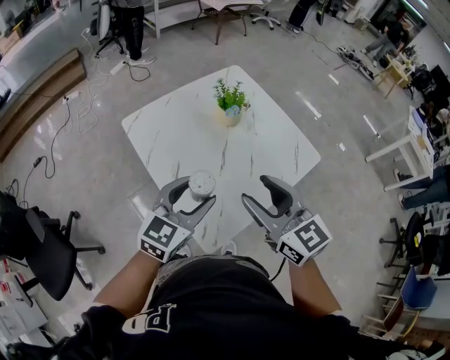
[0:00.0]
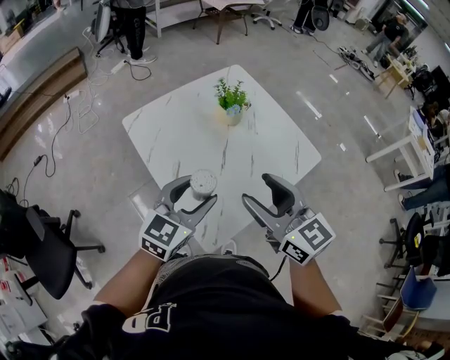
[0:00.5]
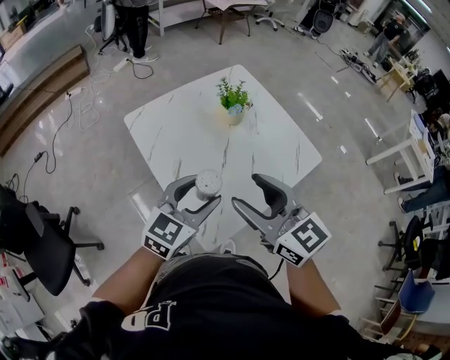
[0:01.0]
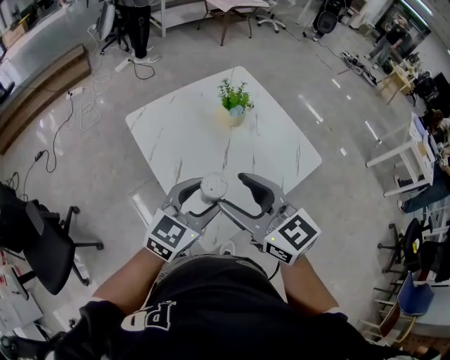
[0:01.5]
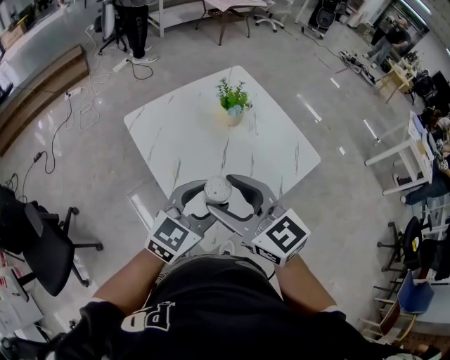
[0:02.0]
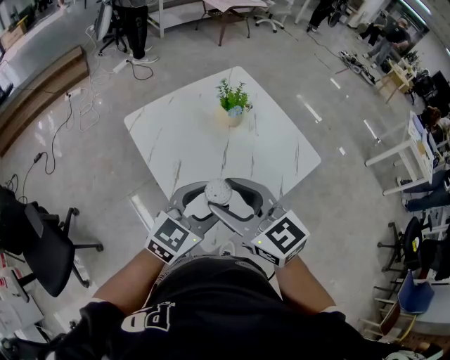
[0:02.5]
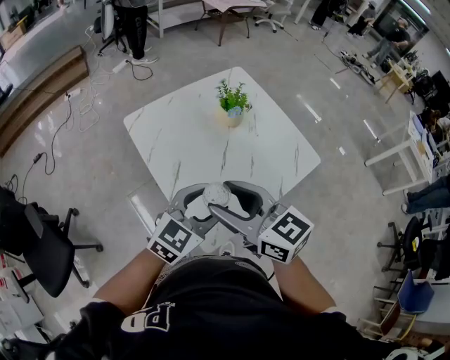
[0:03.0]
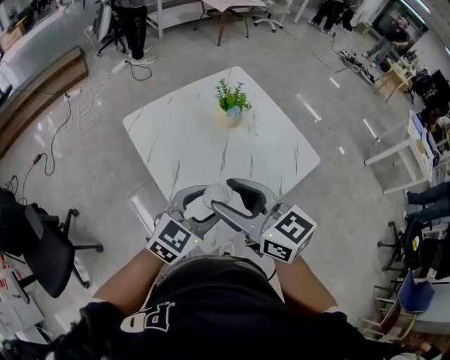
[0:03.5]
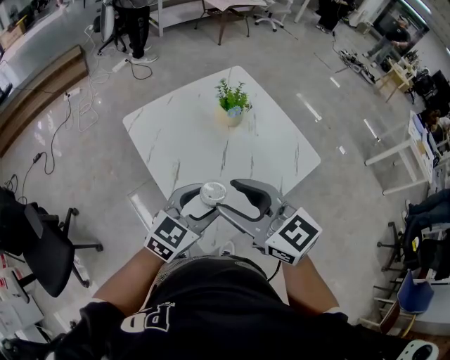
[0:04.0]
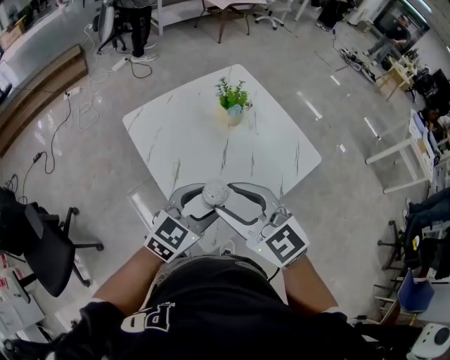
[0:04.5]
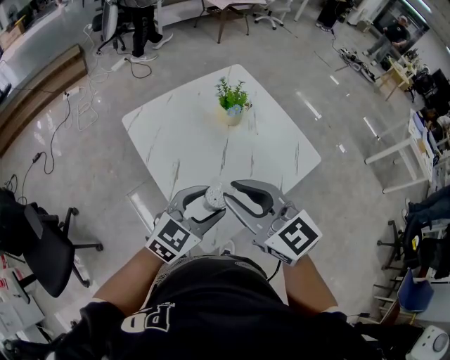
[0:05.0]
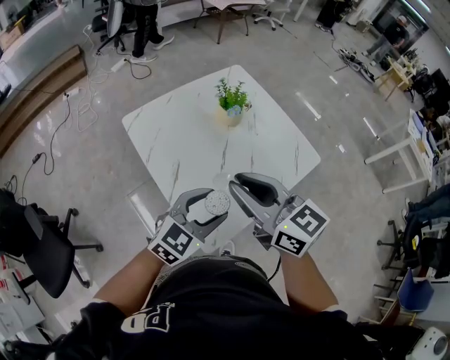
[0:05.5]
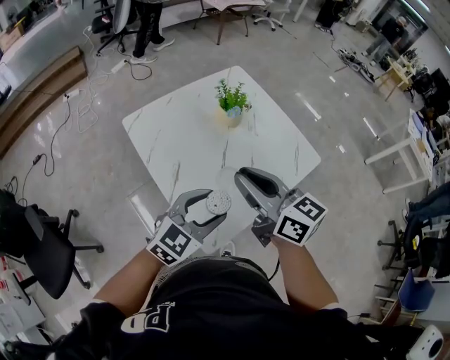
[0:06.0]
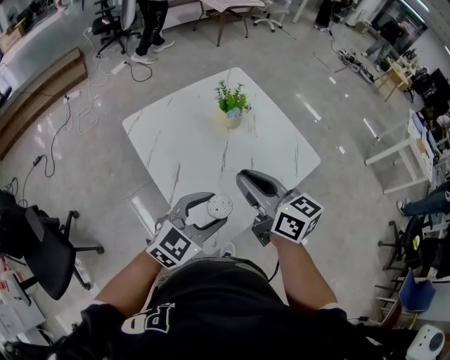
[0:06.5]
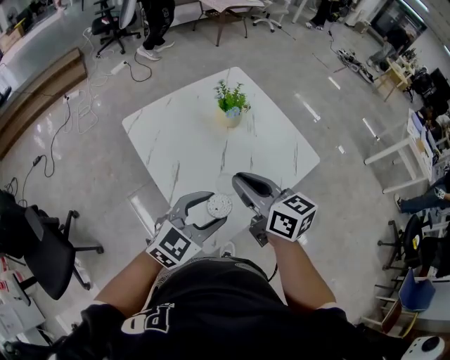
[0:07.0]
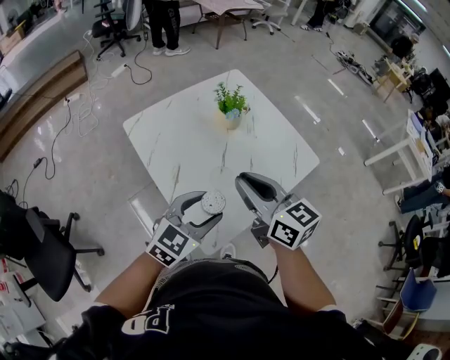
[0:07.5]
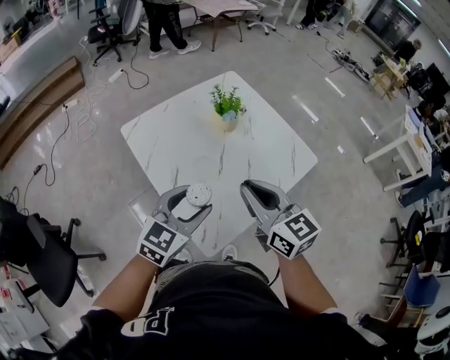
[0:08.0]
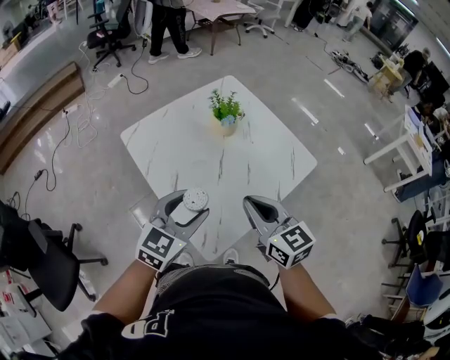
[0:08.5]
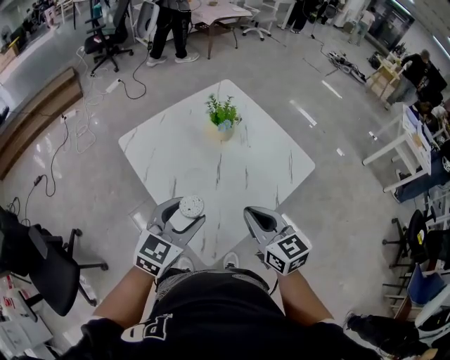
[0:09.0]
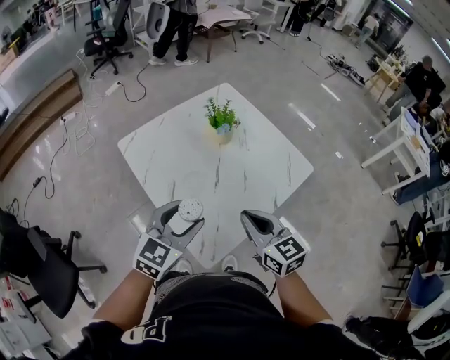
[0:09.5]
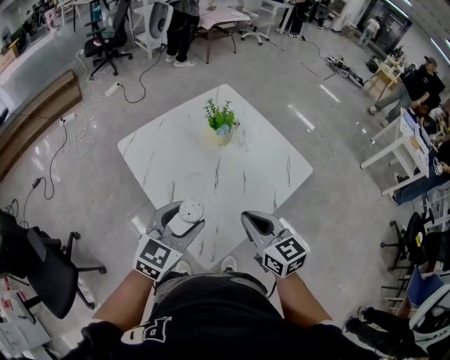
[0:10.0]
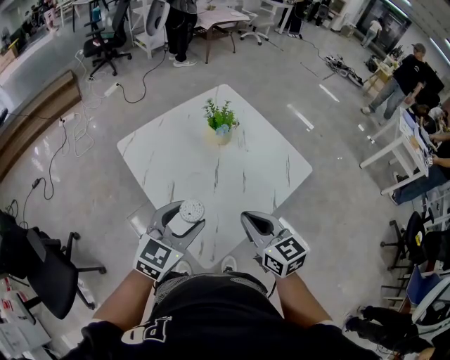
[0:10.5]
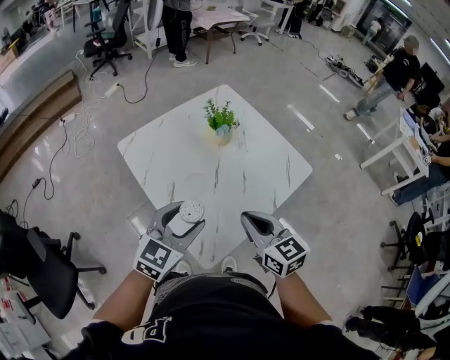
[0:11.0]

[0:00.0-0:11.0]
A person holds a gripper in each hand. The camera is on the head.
0:00.0 to 0:02.0: The right gripper heads to the left, covering roughly 10 cm.
0:02.0 to 0:03.5: The grippers stay close to where they were, moving slightly.
0:03.5 to 0:05.5: The right gripper closes its fingers.
0:07.5 to 0:09.0: The right gripper shifts some 5 cm downward.
0:09.0 to 0:11.0: Neither gripper changes place.

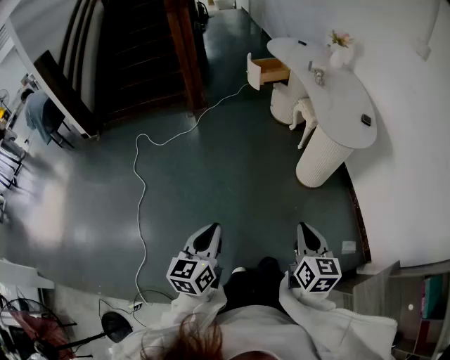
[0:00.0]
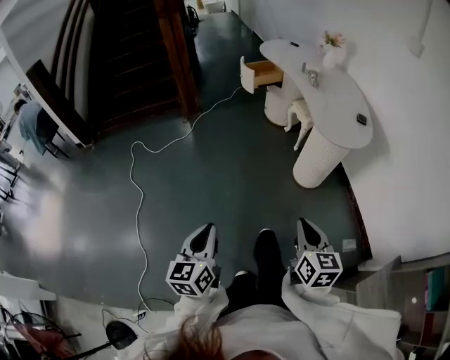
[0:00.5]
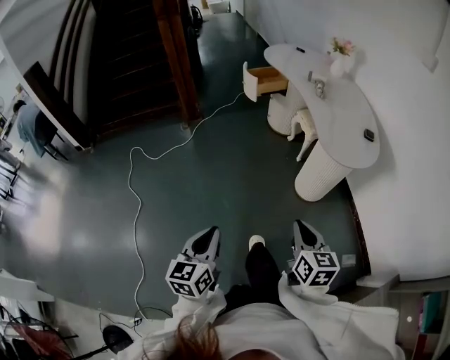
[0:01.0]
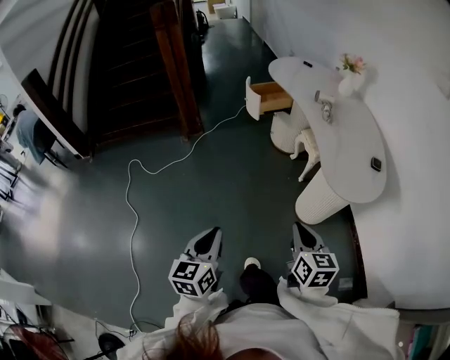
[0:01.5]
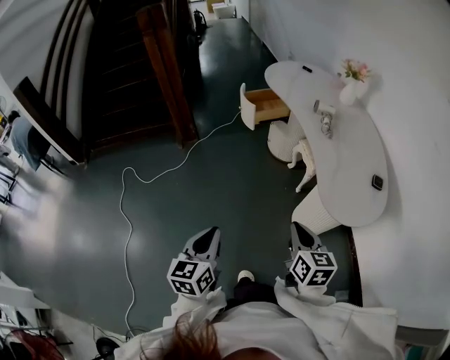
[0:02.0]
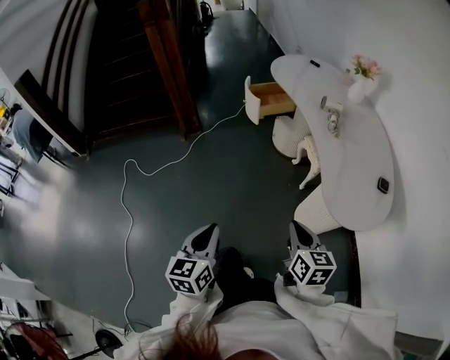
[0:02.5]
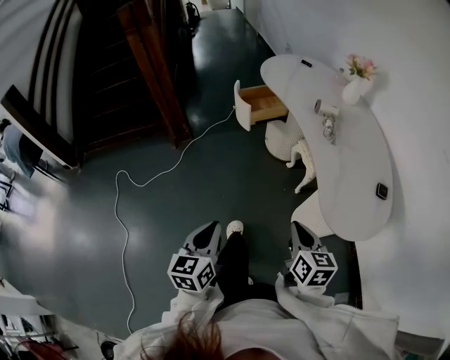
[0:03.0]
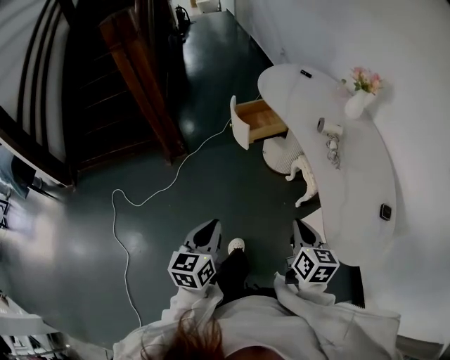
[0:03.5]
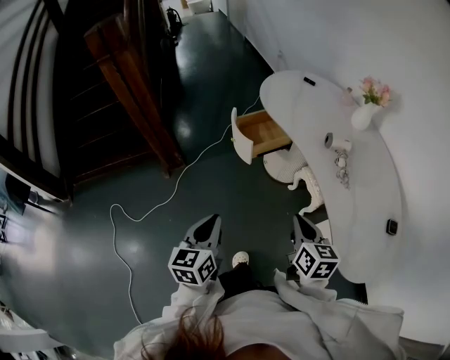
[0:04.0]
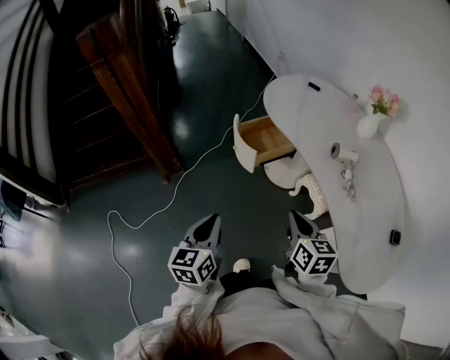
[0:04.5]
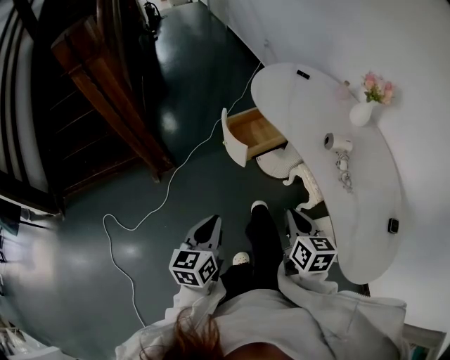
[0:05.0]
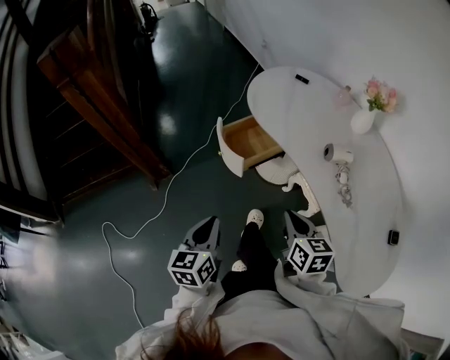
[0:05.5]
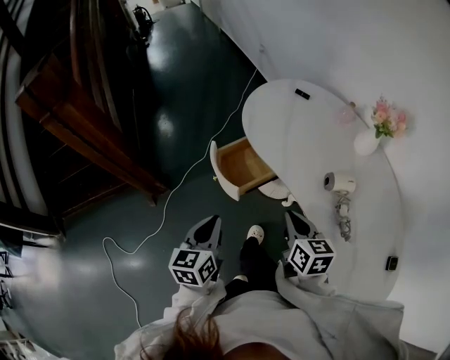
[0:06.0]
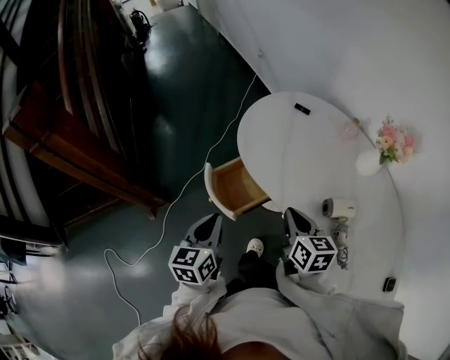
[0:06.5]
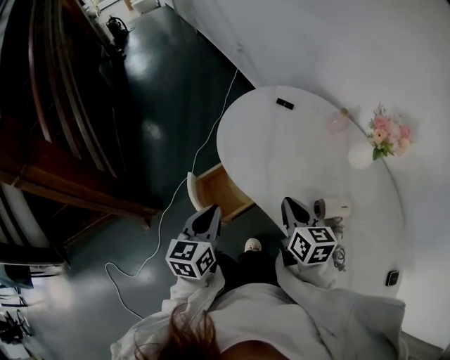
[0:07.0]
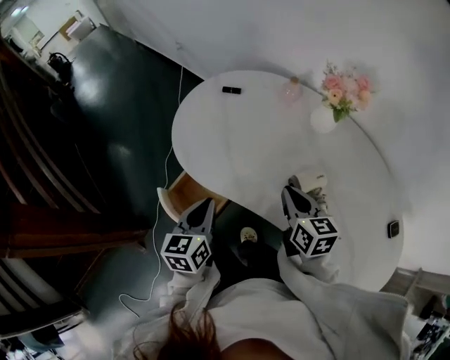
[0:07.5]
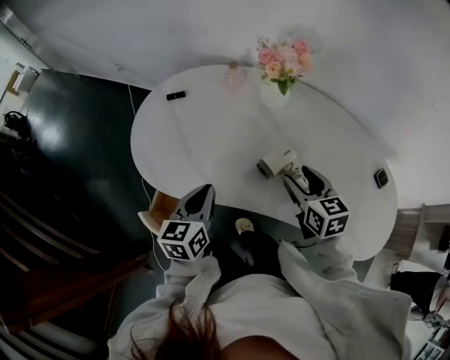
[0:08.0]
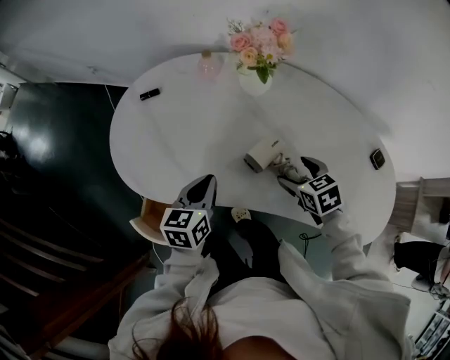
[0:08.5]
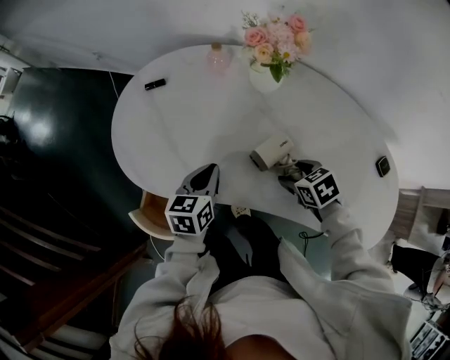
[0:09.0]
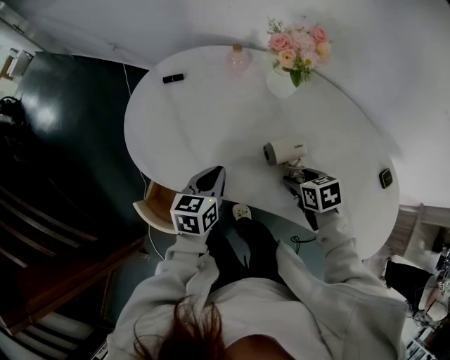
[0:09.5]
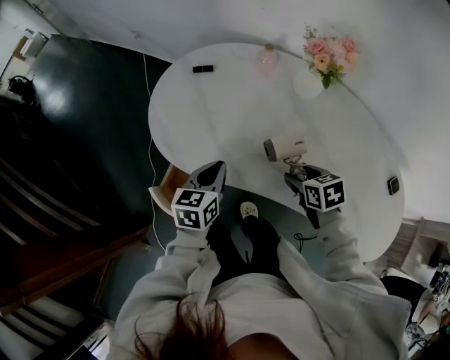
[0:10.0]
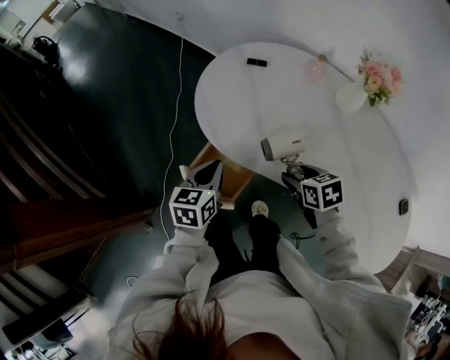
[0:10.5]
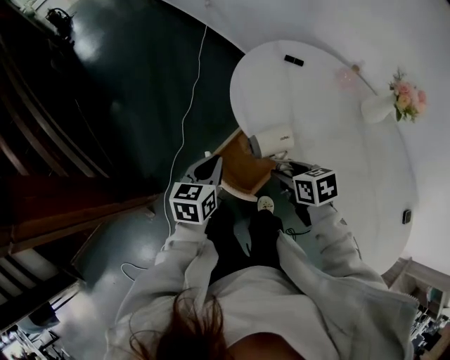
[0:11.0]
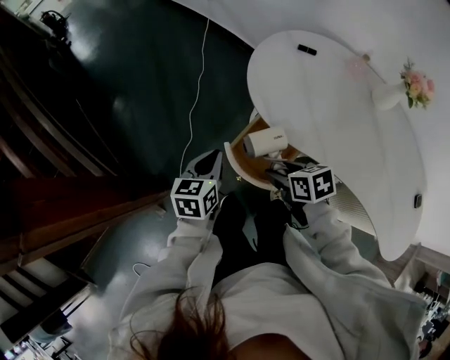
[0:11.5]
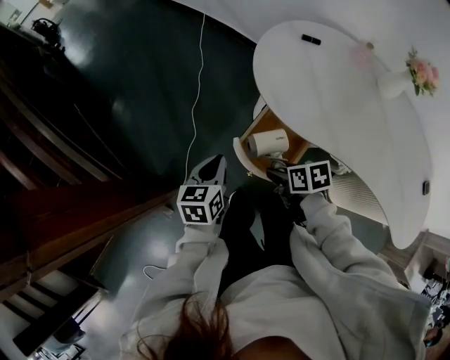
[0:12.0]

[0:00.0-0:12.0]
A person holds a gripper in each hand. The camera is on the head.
0:00.0 to 0:02.0: The two grippers go roughly 35 cm forward.
0:02.0 to 0:04.0: The two grippers go some 35 cm forward.
0:04.0 to 0:06.0: The two grippers go some 25 cm forward.
0:06.0 to 0:08.0: The right gripper shifts by approximately 25 cm, swivels approximately 30 degrees, and opens up, while the left gripper moves about 30 cm, and changes its angle by about 40 degrees.
0:08.0 to 0:10.0: The right gripper heads downward and to the left, covering some 10 cm, and rotates about 30 degrees; the left gripper travels downward by approximately 5 cm.
0:10.0 to 0:12.0: Both grippers move to the left, approximately 35 cm.

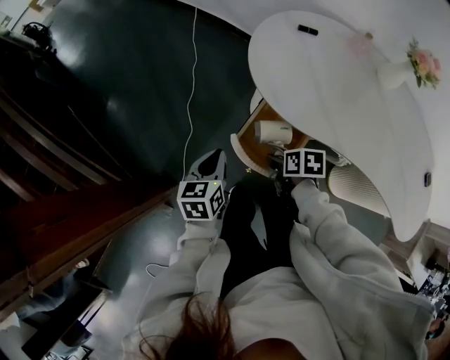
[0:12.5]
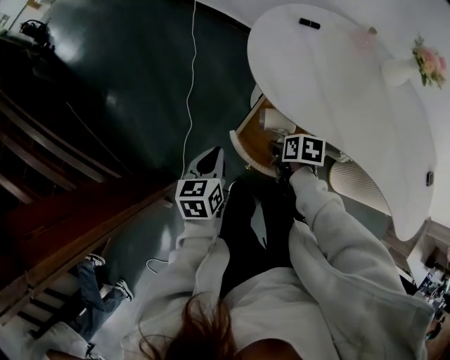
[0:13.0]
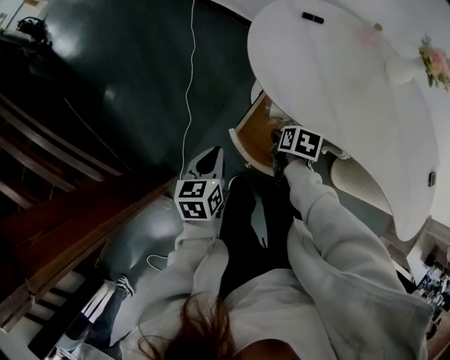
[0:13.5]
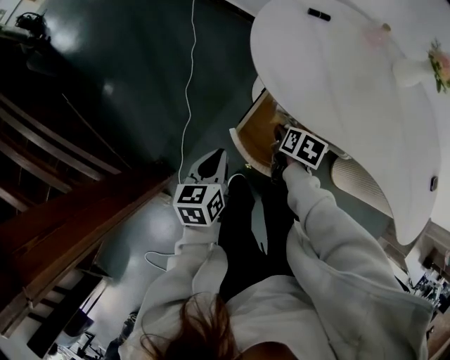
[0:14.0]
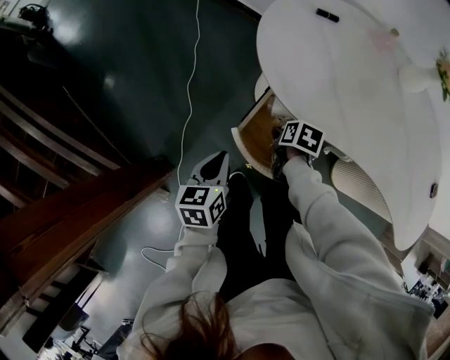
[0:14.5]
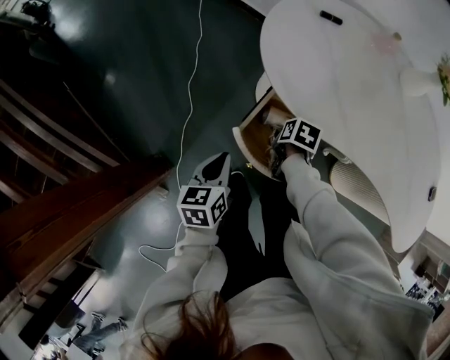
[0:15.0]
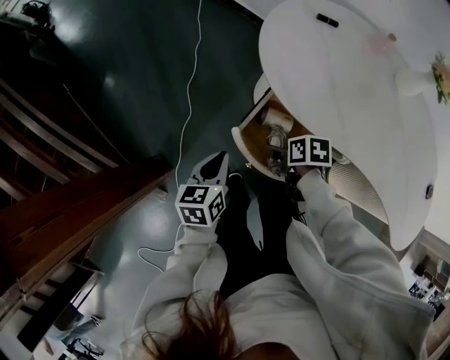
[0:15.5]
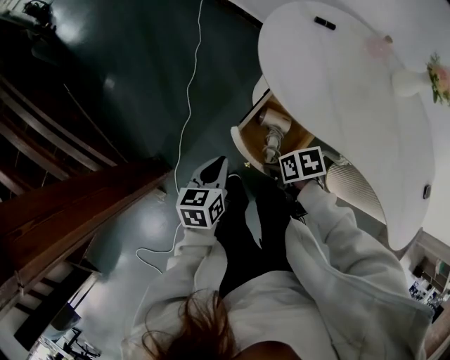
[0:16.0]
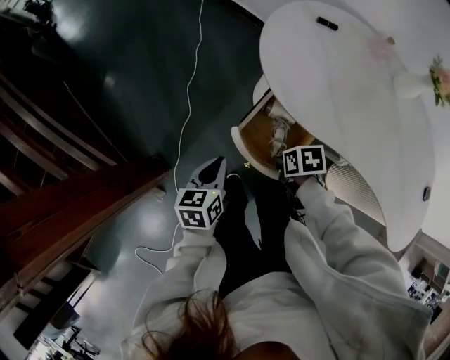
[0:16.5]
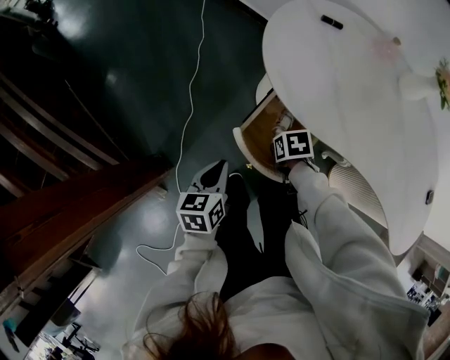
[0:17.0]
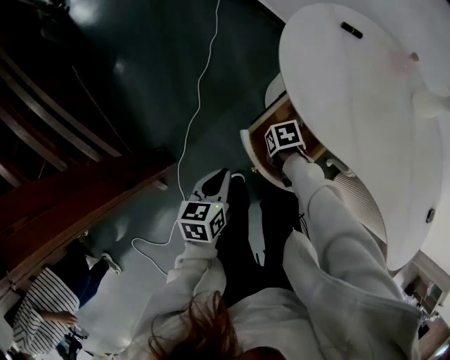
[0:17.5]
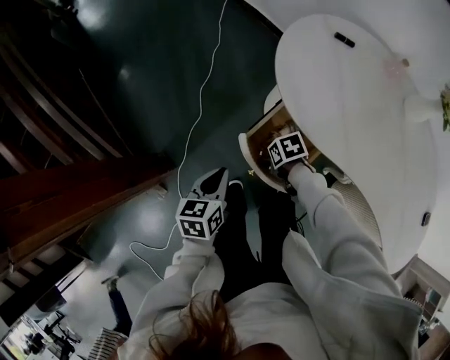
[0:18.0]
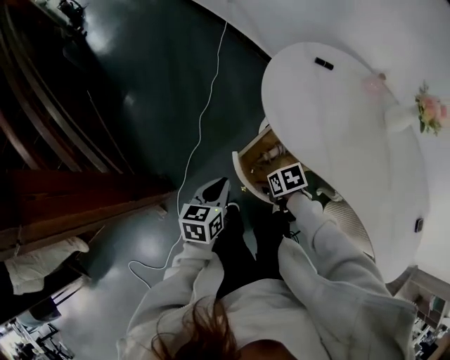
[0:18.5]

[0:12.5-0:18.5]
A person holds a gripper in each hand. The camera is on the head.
0:12.5 to 0:14.5: The right gripper moves forward and downward, some 10 cm.
0:14.5 to 0:16.5: The right gripper moves approximately 10 cm, and turns by approximately 30 degrees.
0:16.5 to 0:18.5: The right gripper goes downward and returns, about 10 cm each way, and opens.
